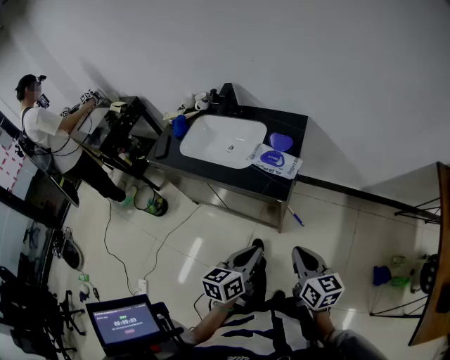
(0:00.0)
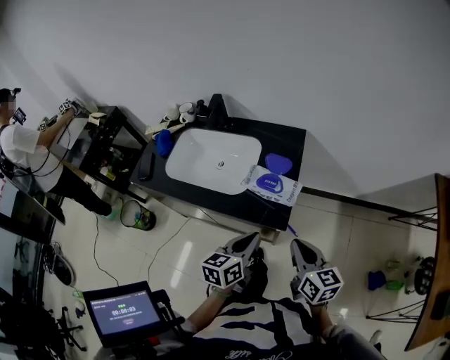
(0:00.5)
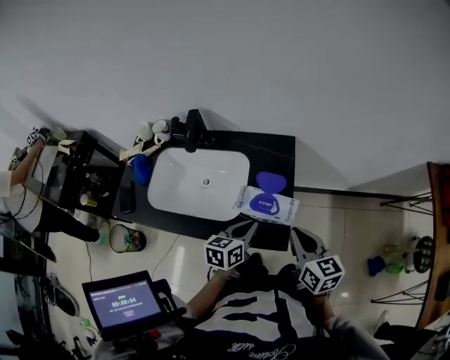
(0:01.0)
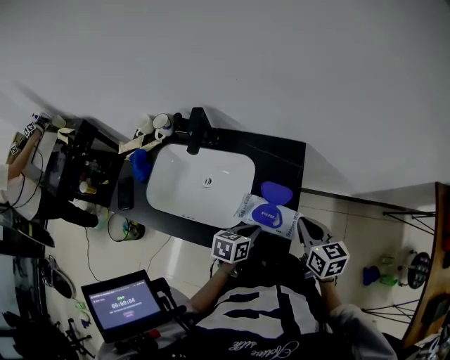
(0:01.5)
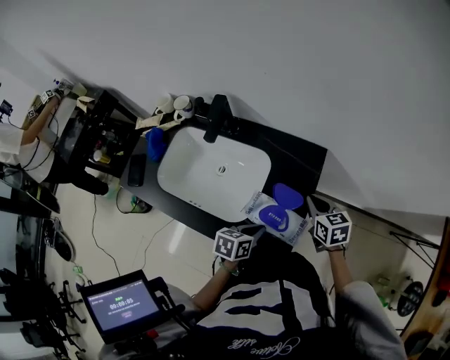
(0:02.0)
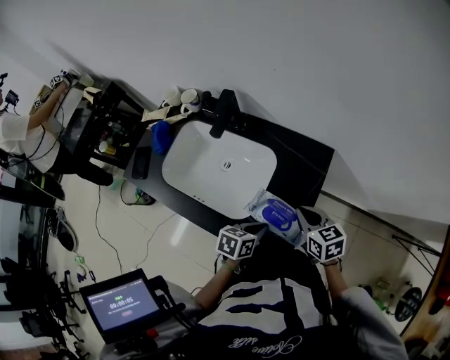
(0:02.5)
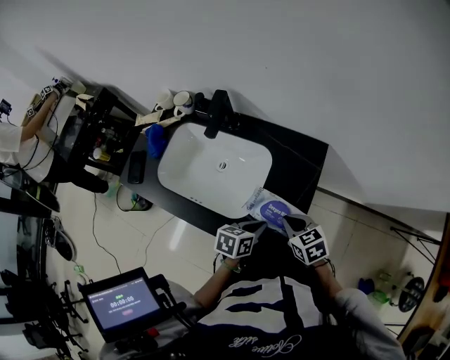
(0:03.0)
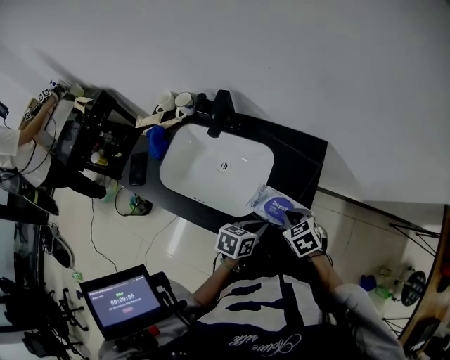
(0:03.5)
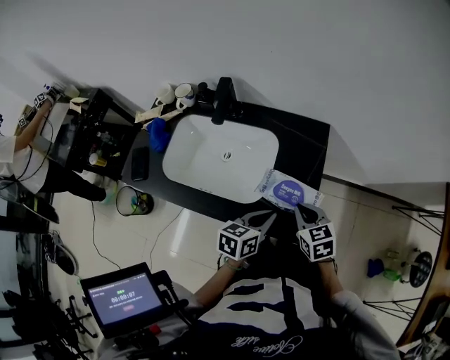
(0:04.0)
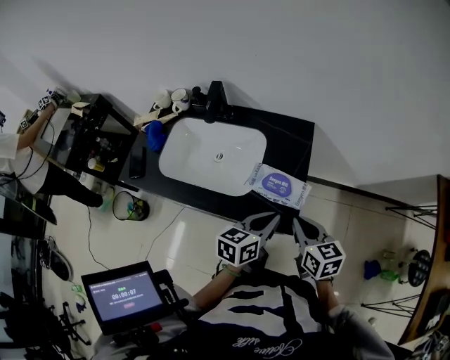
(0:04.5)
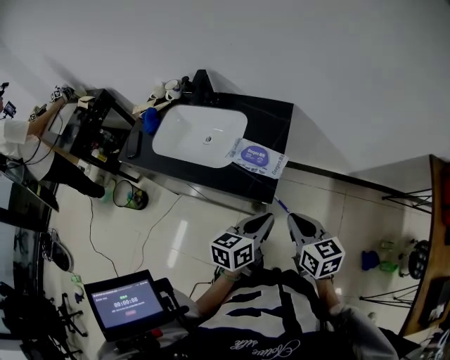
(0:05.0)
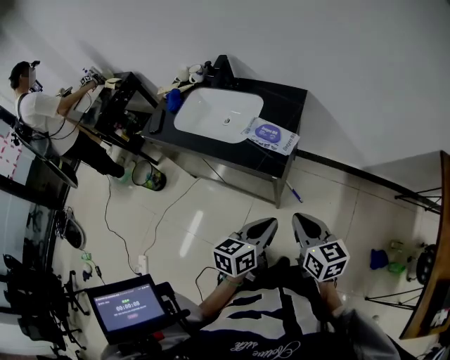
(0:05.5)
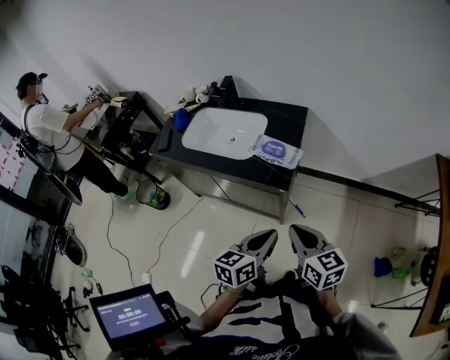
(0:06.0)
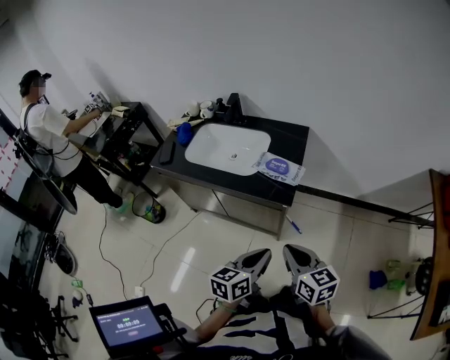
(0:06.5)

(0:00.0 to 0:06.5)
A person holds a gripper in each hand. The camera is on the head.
0:00.0 - 0:02.0: The left gripper shifts some 35 cm forward and downward, and changes its angle by roughly 30 degrees. The right gripper moves forward, roughly 50 cm, and swivels approximately 20 degrees.
0:02.0 - 0:04.5: The right gripper heads backward, covering about 20 cm; the left gripper travels upward and backward by about 15 cm, and turns by about 20 degrees.
0:04.5 - 0:06.5: Both grippers move backward, approximately 25 cm.

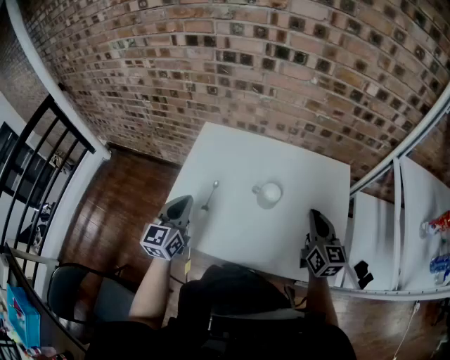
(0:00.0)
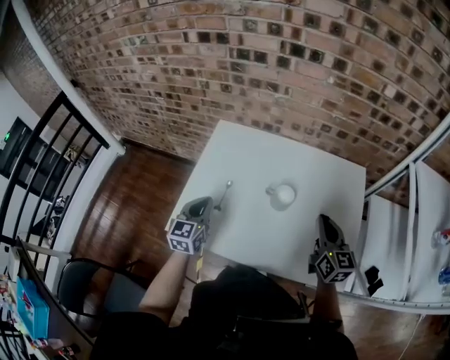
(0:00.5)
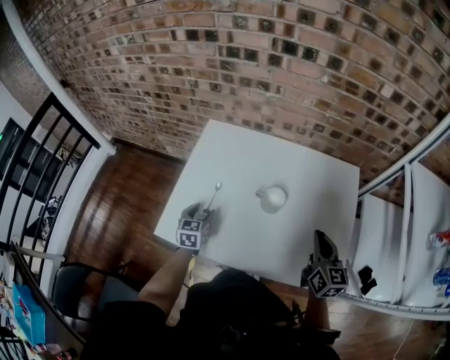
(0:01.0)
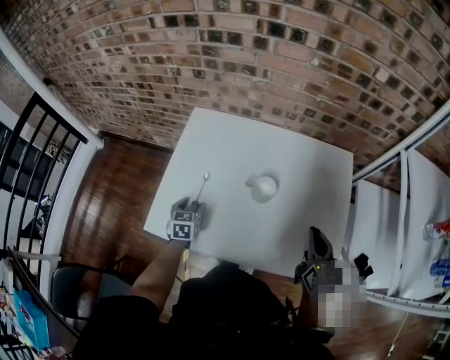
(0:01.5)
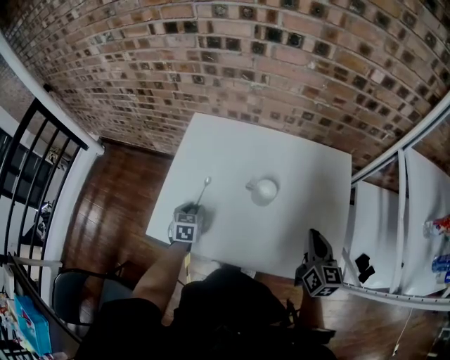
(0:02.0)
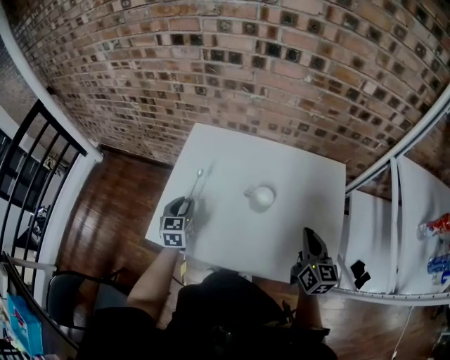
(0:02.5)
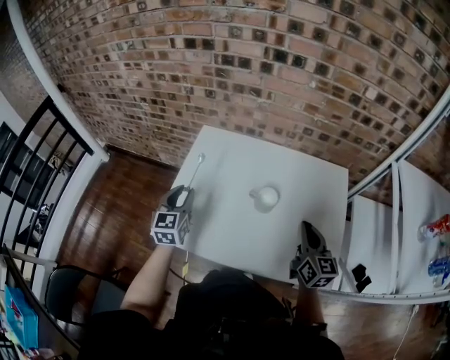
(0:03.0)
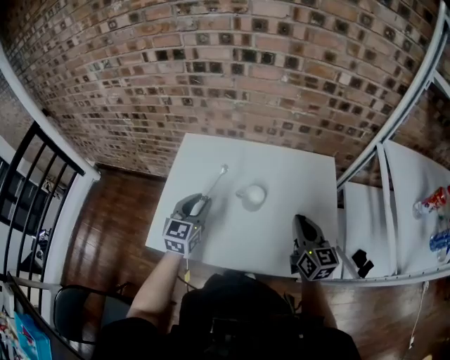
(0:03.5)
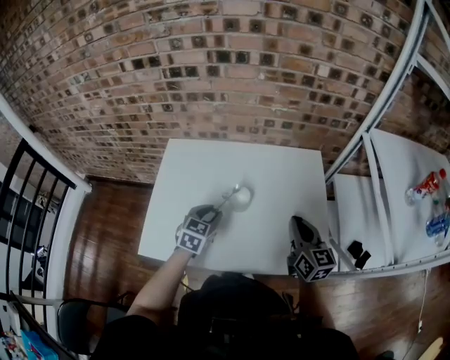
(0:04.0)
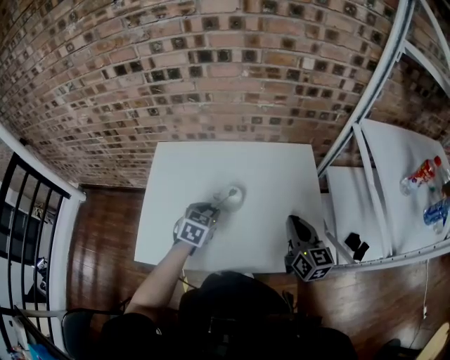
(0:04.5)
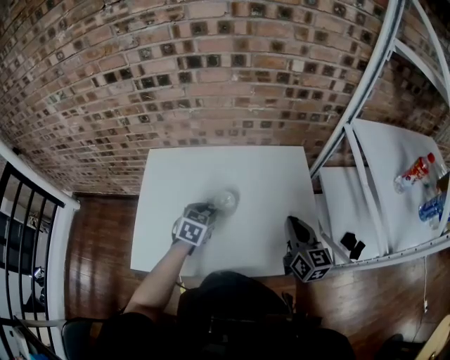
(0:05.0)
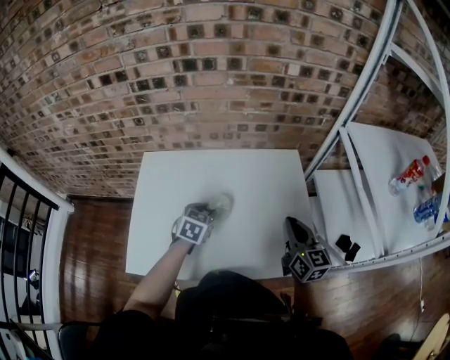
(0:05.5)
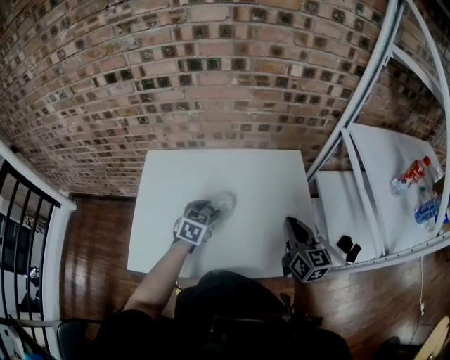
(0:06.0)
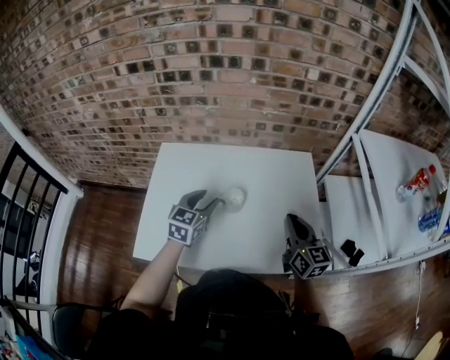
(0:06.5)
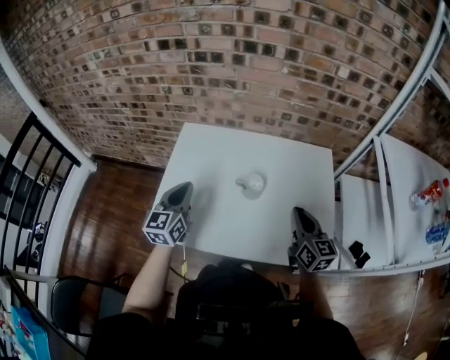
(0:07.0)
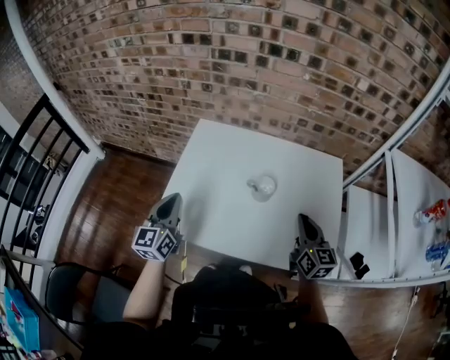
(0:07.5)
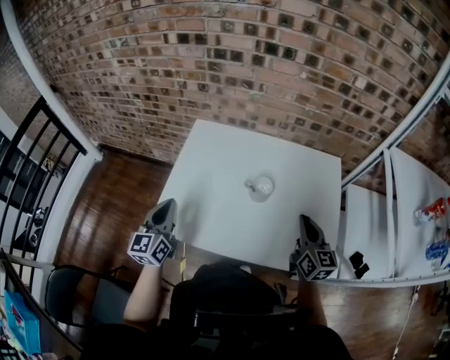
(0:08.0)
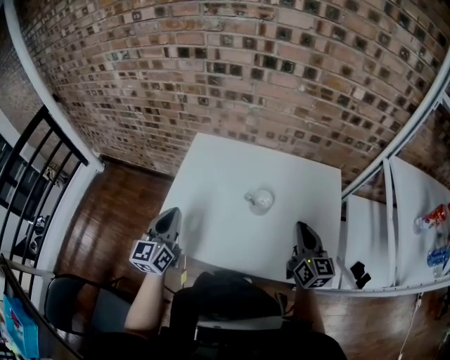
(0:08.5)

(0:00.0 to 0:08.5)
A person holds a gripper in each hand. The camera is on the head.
0:00.0 - 0:02.0: The right gripper heads downward, covering about 5 cm. The left gripper moves downward, roughly 20 cm, tilts its fingers about 40 degrees downward, and opens its fingers.
0:02.0 - 0:04.0: The left gripper goes some 20 cm to the right and upward, and rotates some 30 degrees.
0:04.0 - 0:06.5: The left gripper goes roughly 5 cm upward.
0:06.5 - 0:08.5: The right gripper heads to the left, covering roughly 5 cm; the left gripper travels to the left and backward by about 25 cm, rotates approximately 30 degrees, and closes its fingers.

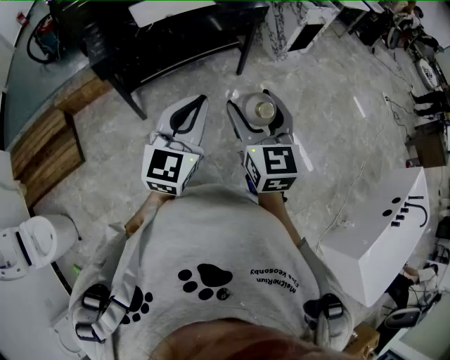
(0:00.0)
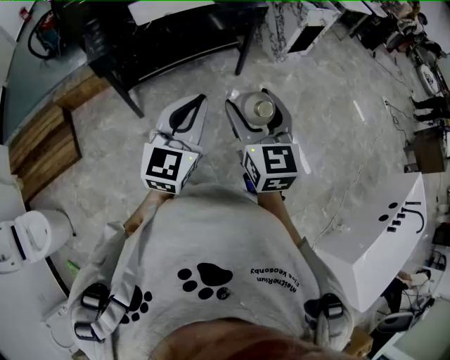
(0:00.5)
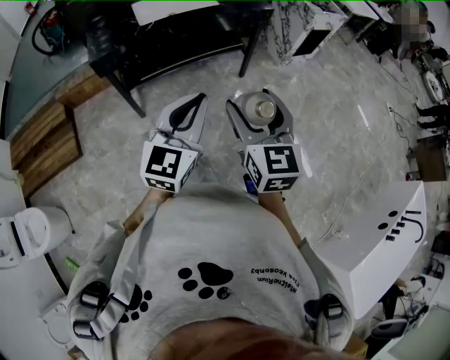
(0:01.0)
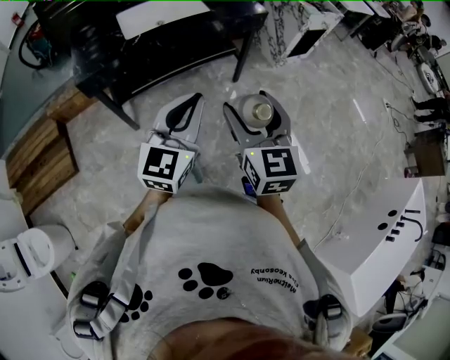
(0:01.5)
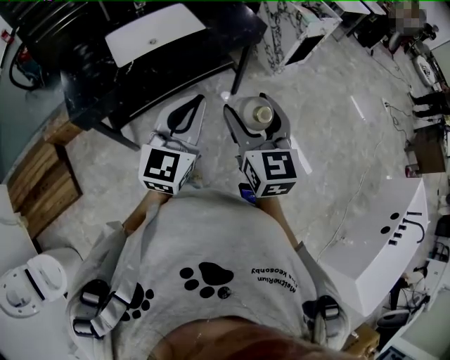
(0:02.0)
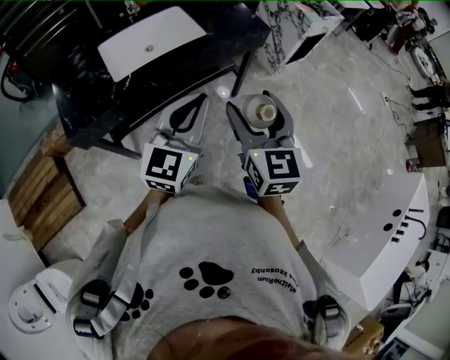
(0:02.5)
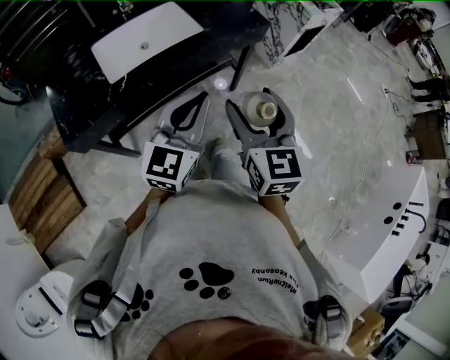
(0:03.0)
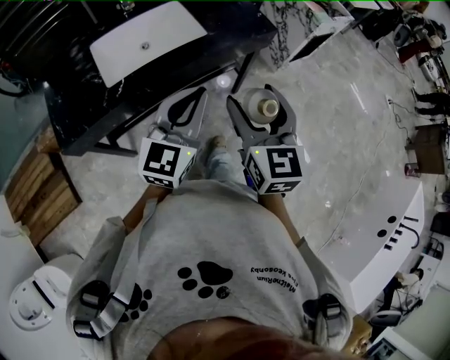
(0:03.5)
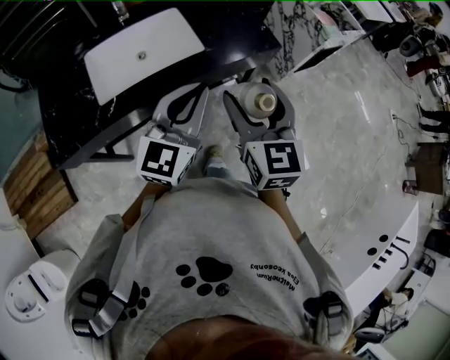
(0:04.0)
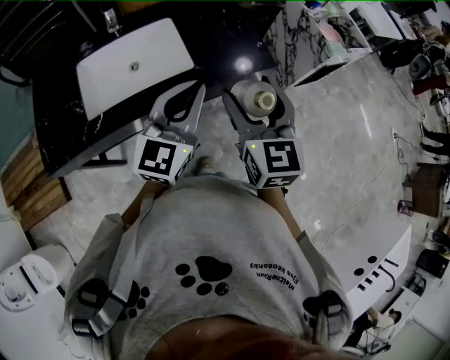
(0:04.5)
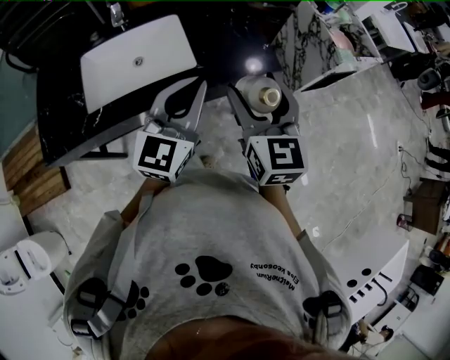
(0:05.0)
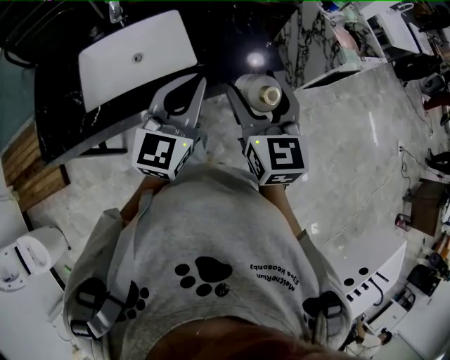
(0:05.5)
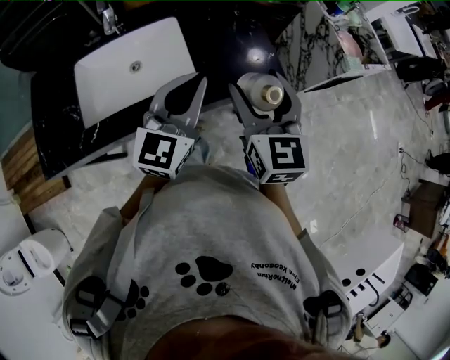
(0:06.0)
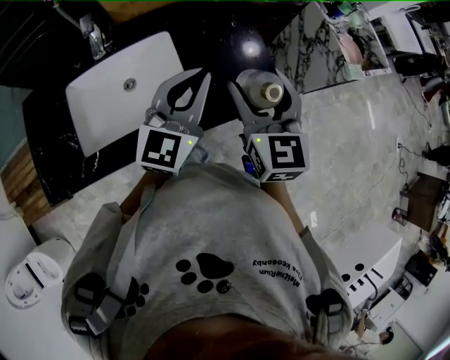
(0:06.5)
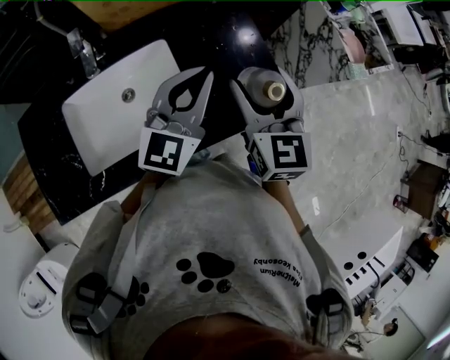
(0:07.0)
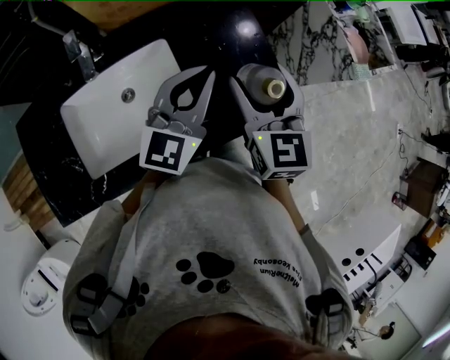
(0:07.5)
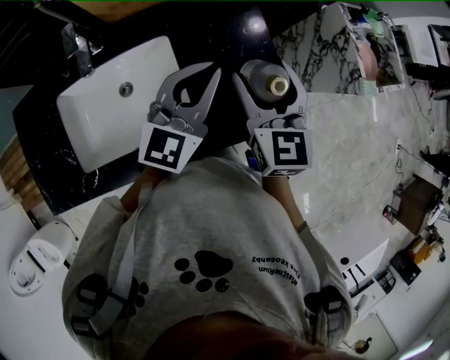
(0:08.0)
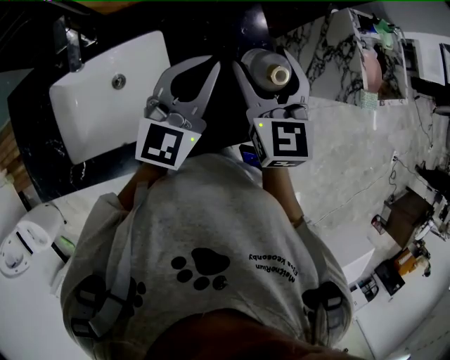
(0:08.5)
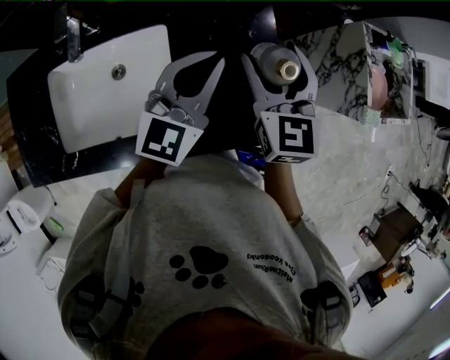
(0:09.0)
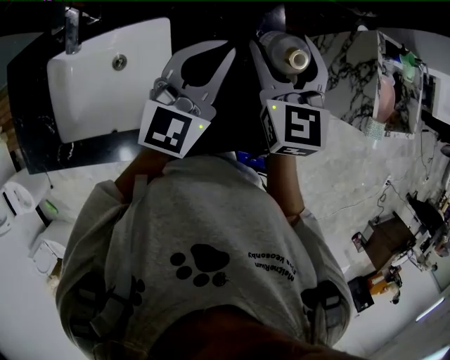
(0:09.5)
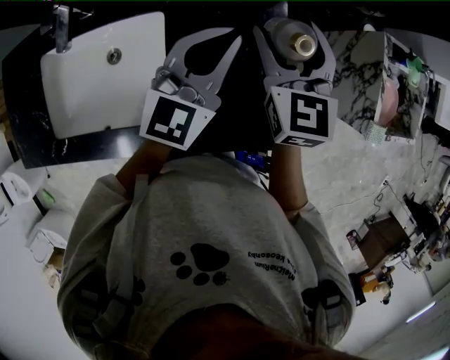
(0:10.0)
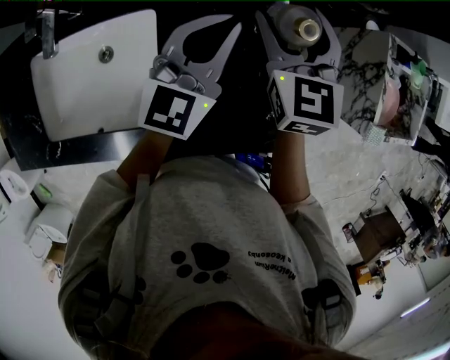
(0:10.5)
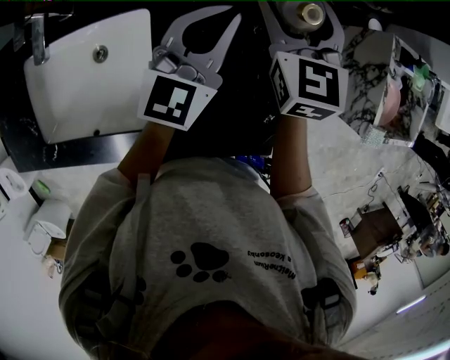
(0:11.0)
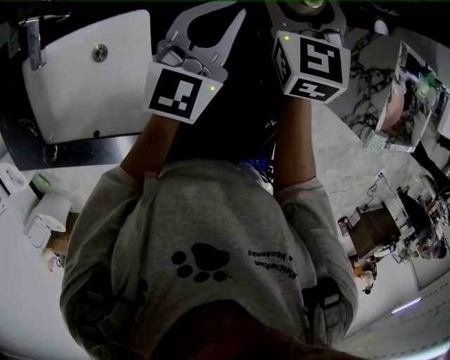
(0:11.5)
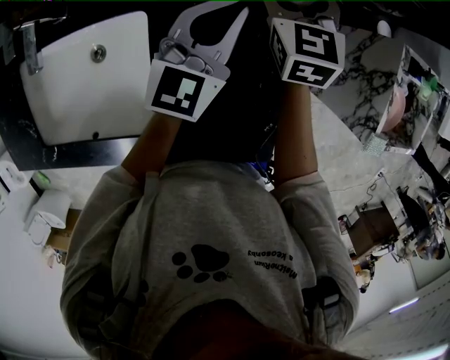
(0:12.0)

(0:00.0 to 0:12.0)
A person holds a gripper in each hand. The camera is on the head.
0:00.0 - 0:02.0: Both grippers move forward, some 25 cm.
0:02.0 - 0:04.0: The two grippers go roughly 25 cm forward.
0:04.0 - 0:06.0: The grippers both shift forward by about 20 cm.
0:06.0 - 0:08.0: Both grippers move forward, about 20 cm.
0:08.0 - 0:10.0: The grippers both shift forward by approximately 15 cm.
0:10.0 - 0:12.0: Both grippers travel together forward and downward, roughly 15 cm.
